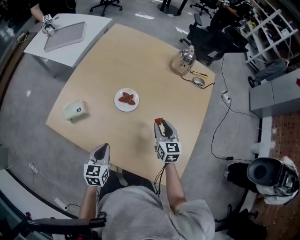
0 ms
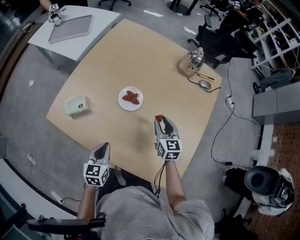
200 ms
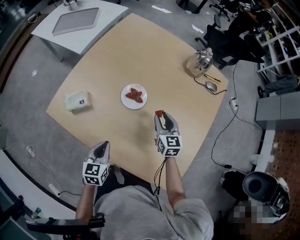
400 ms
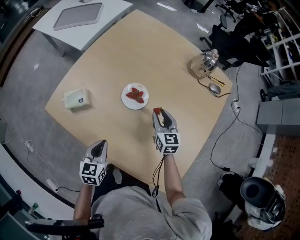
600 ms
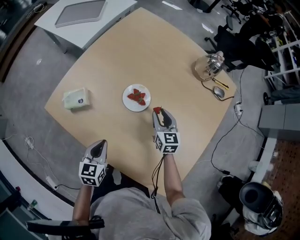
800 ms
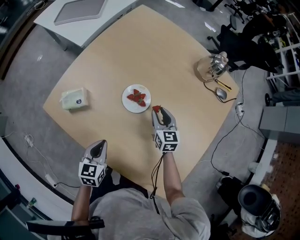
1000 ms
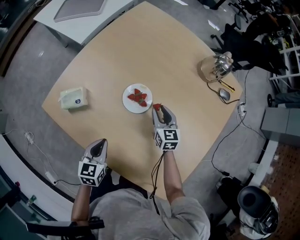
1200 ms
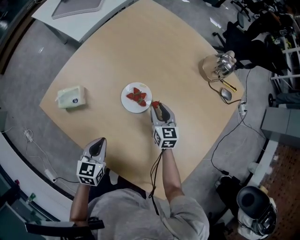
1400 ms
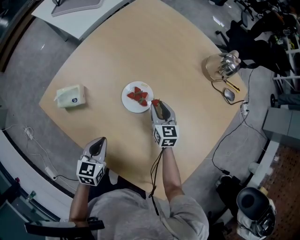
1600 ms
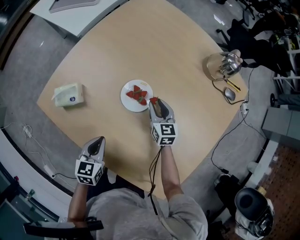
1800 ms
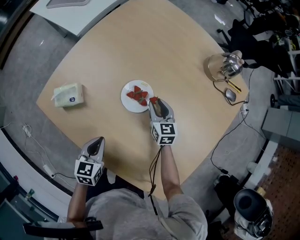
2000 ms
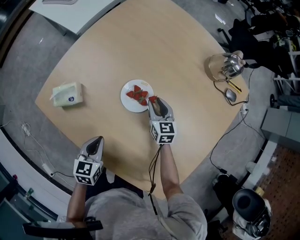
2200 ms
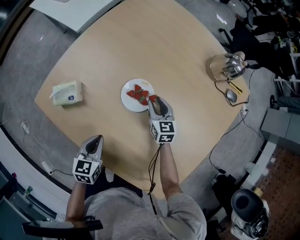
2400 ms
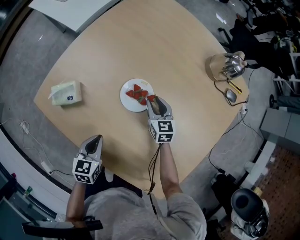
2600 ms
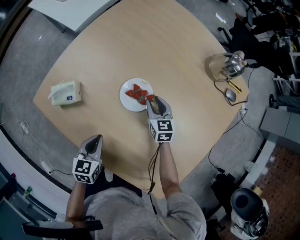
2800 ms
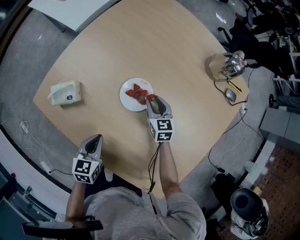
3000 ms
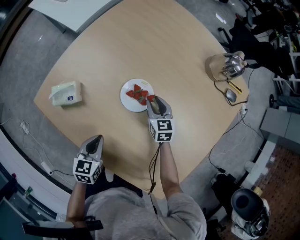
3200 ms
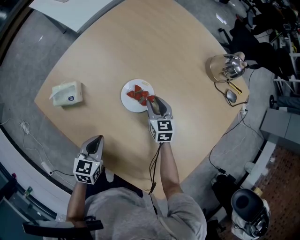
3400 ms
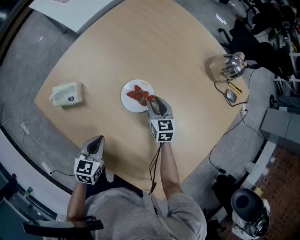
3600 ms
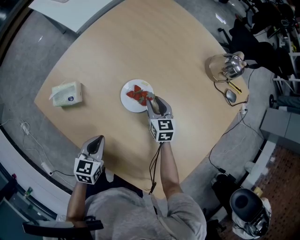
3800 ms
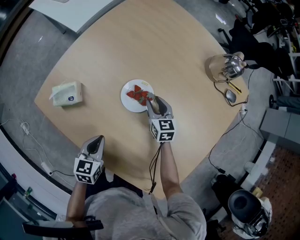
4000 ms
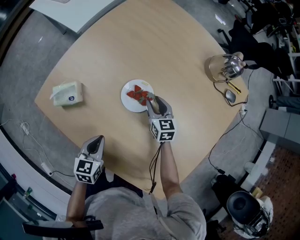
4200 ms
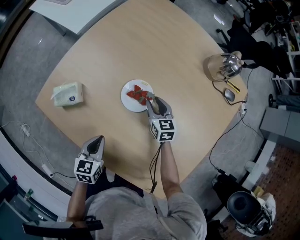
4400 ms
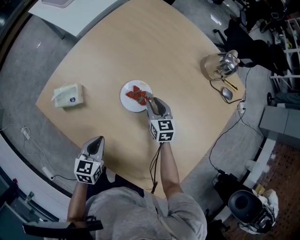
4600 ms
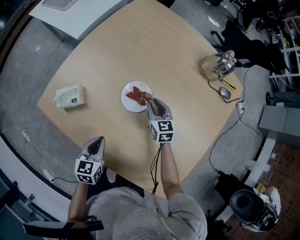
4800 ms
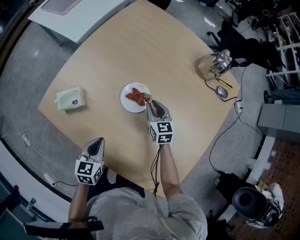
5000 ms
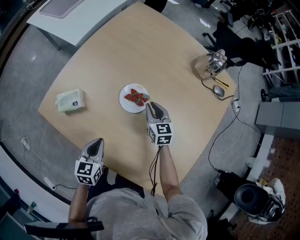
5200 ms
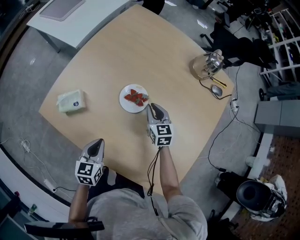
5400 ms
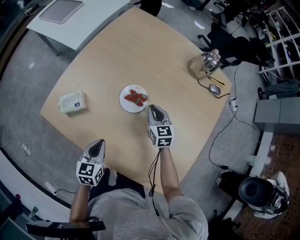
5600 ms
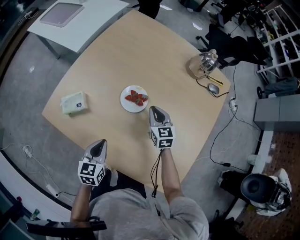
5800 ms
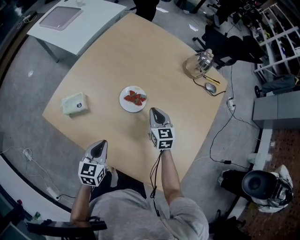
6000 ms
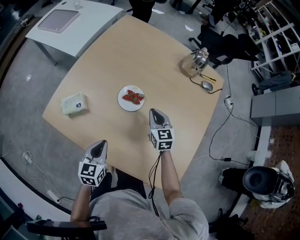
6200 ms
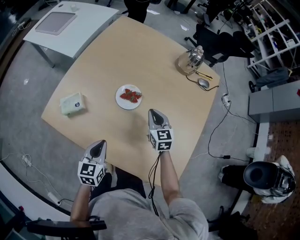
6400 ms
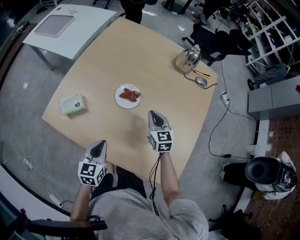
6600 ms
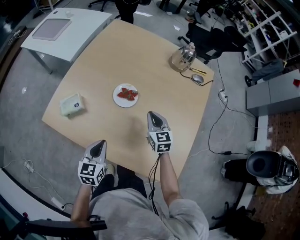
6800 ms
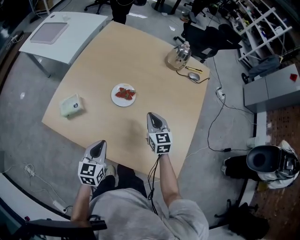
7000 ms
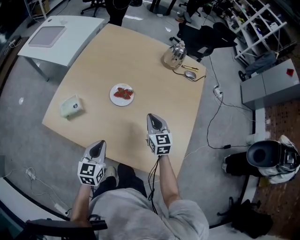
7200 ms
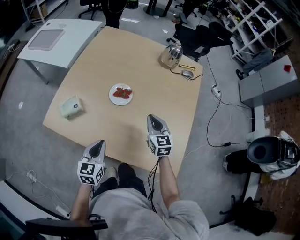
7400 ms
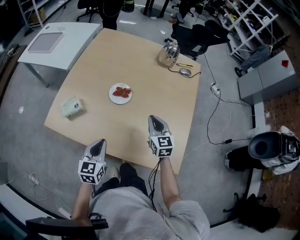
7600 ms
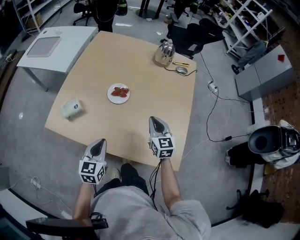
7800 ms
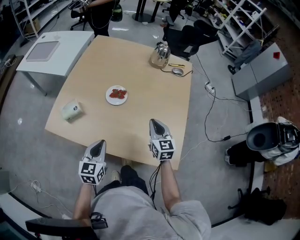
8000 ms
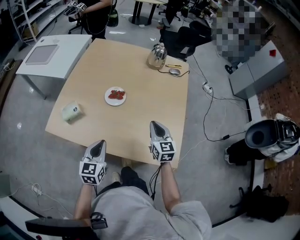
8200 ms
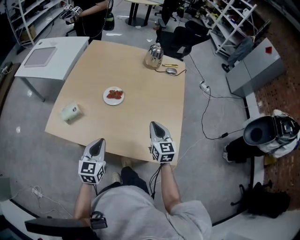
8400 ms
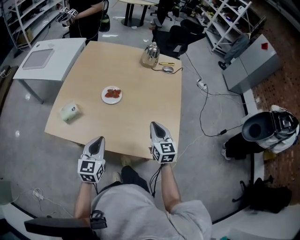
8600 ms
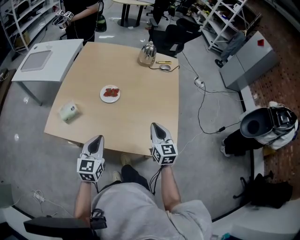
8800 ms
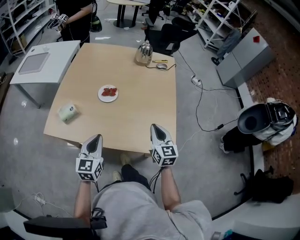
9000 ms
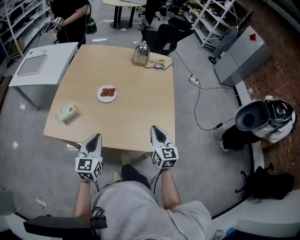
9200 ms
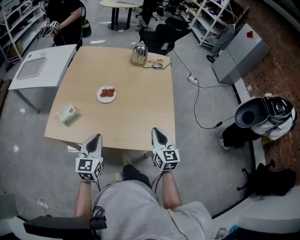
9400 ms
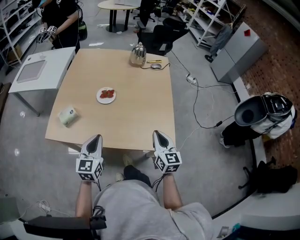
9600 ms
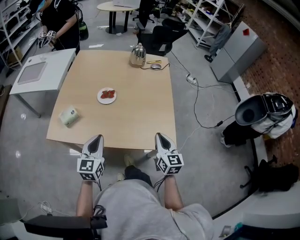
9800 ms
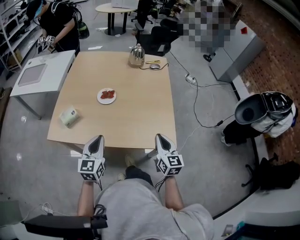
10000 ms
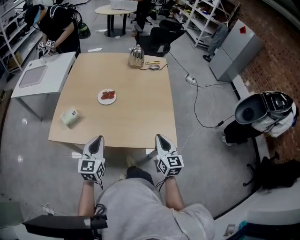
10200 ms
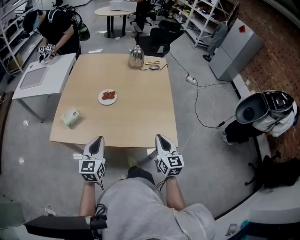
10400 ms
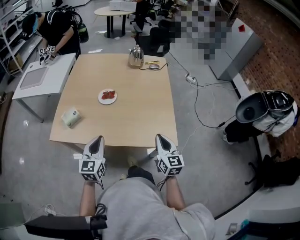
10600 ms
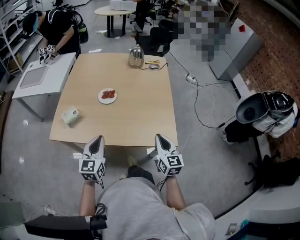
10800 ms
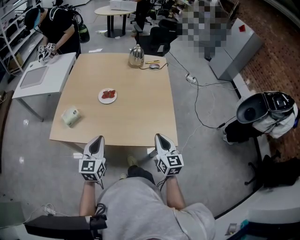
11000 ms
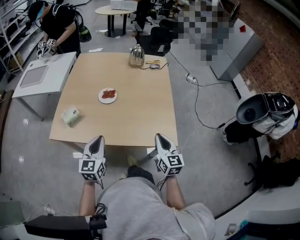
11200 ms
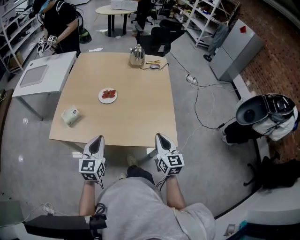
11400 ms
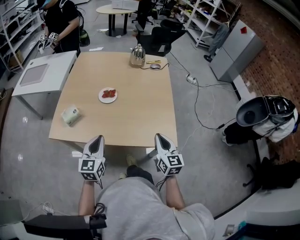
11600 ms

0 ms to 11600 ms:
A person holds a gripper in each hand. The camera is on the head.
0 ms to 1400 ms: The left gripper travels forward and downward by roughly 10 cm; the right gripper heads forward, downward and to the left, covering roughly 20 cm.
1400 ms to 2800 ms: The right gripper moves about 5 cm.
2800 ms to 4400 ms: Both grippers stay put.
4400 ms to 5800 ms: The left gripper goes some 5 cm upward. The right gripper is displaced upward and backward by roughly 10 cm, and closes its fingers.
5800 ms to 7200 ms: The right gripper moves backward and upward, approximately 15 cm, while the left gripper travels backward and upward by roughly 10 cm.
7200 ms to 8800 ms: The left gripper travels upward and backward by approximately 10 cm, while the right gripper heads backward, upward and to the right, covering roughly 20 cm.
8800 ms to 10200 ms: The left gripper changes place by some 5 cm, while the right gripper moves backward, approximately 15 cm.
10200 ms to 11600 ms: Both grippers stay put.

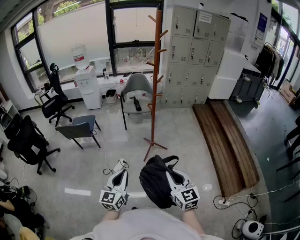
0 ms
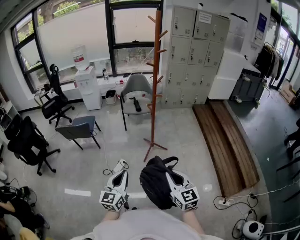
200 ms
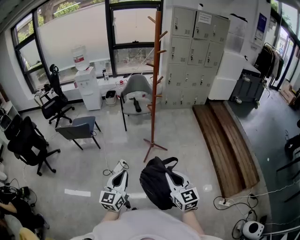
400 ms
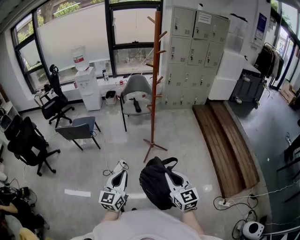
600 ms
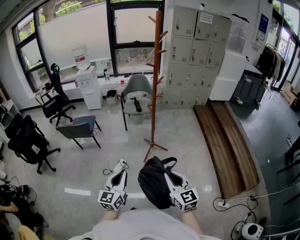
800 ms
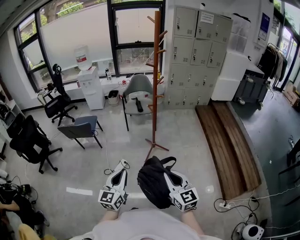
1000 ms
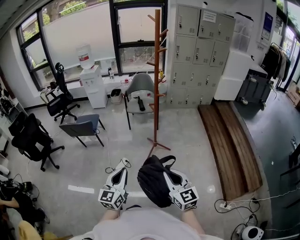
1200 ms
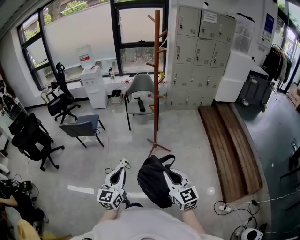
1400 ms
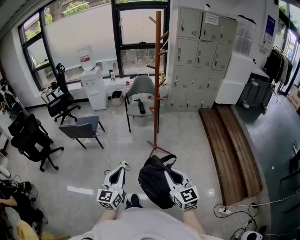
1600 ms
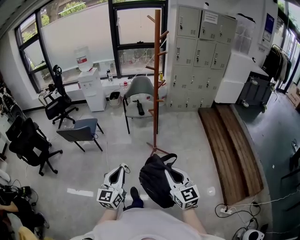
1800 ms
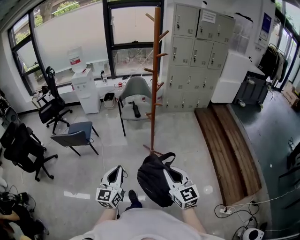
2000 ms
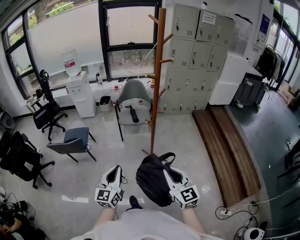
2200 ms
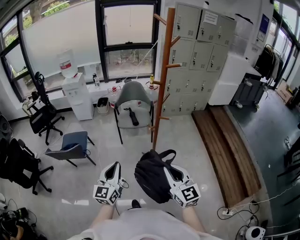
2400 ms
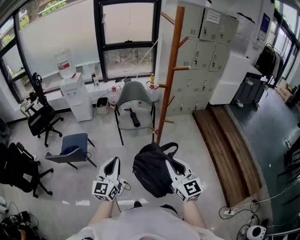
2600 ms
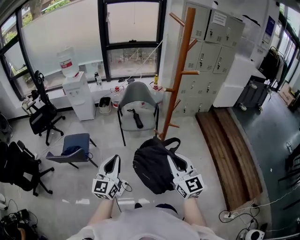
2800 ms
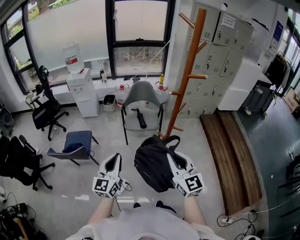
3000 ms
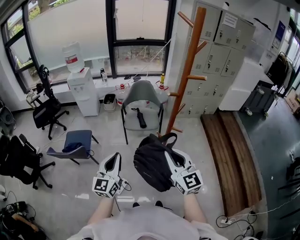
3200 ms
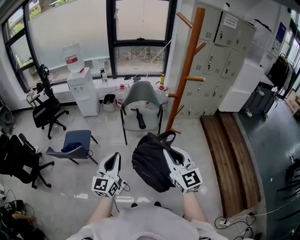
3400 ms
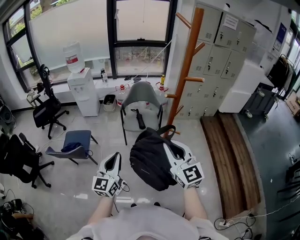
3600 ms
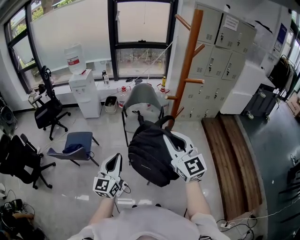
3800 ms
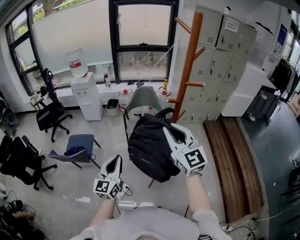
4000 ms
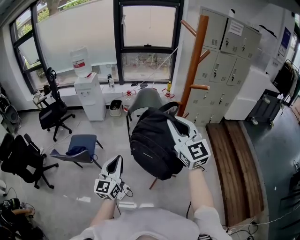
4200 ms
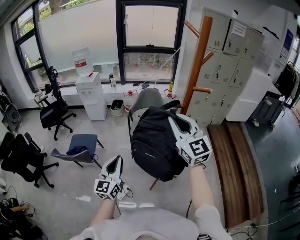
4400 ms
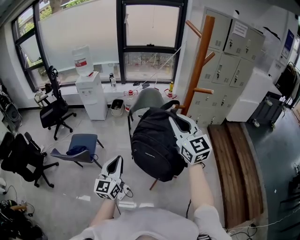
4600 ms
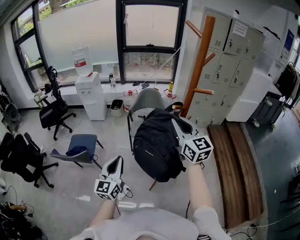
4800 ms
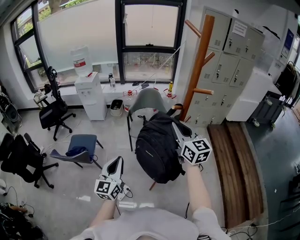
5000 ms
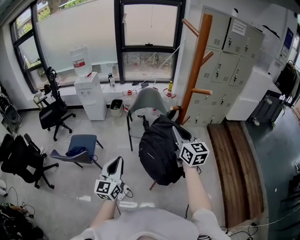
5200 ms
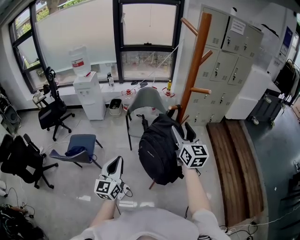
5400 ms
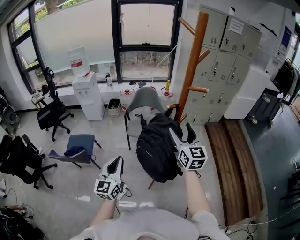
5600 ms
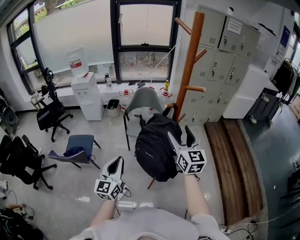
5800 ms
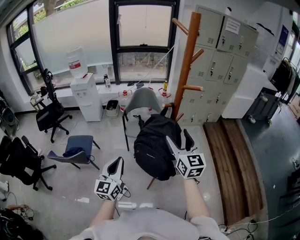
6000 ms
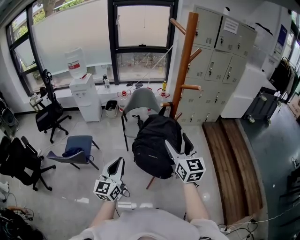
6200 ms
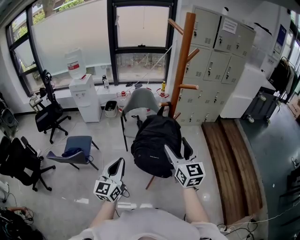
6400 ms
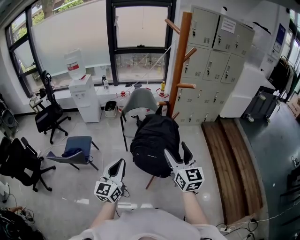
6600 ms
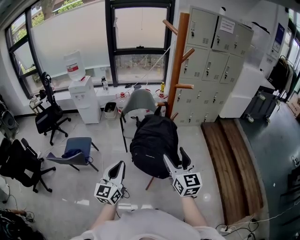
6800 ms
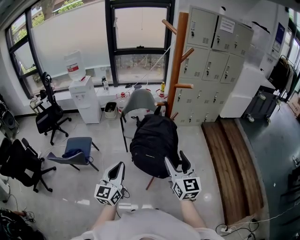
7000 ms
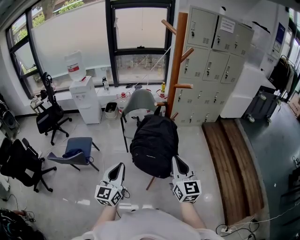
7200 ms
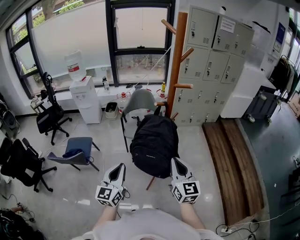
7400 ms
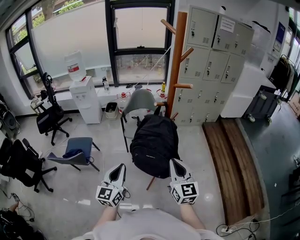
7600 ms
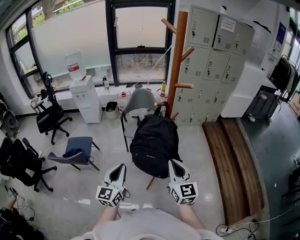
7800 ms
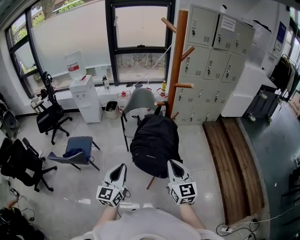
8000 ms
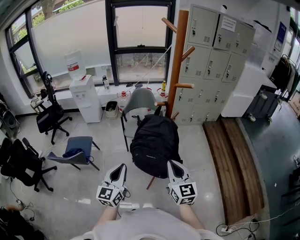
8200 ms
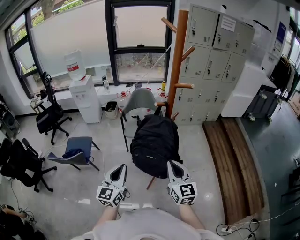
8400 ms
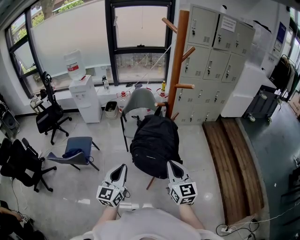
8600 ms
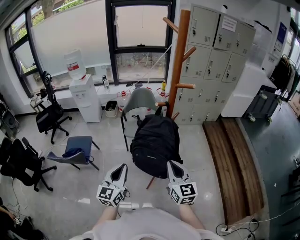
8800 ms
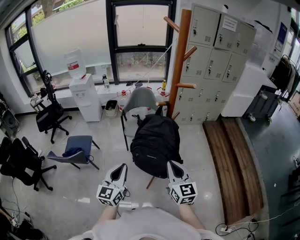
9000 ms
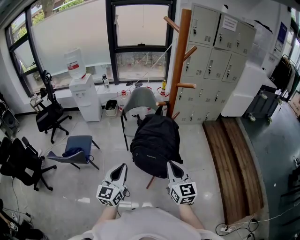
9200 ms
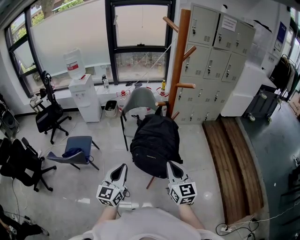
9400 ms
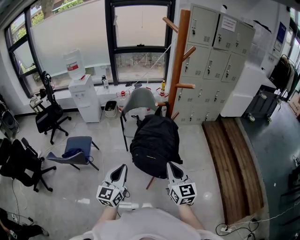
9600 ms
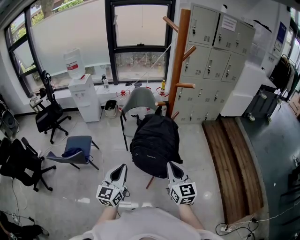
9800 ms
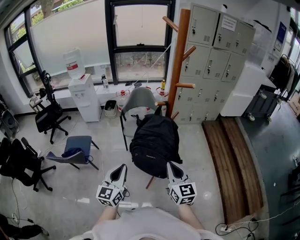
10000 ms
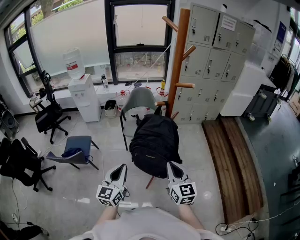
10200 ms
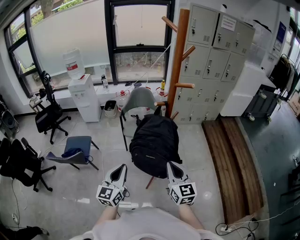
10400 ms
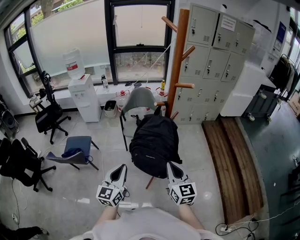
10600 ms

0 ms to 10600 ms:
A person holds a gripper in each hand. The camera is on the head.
0 ms to 1600 ms: The right gripper moves some 5 cm.
1600 ms to 3000 ms: The grippers both shift forward by approximately 40 cm.
3000 ms to 4600 ms: The right gripper travels forward and upward by approximately 20 cm.
4600 ms to 6000 ms: The right gripper moves downward and to the right, approximately 10 cm, and opens up.
6000 ms to 7600 ms: The left gripper shifts by some 5 cm, while the right gripper heads backward and downward, covering approximately 10 cm, and closes.
7600 ms to 9000 ms: The grippers move only a little.
9000 ms to 10600 ms: Both grippers stay about where they are.

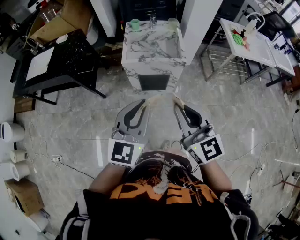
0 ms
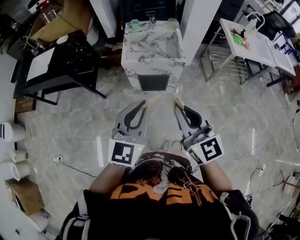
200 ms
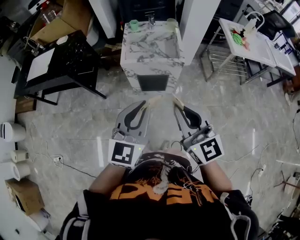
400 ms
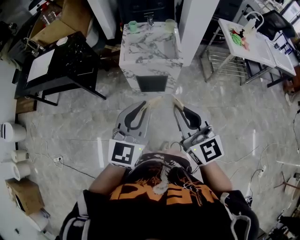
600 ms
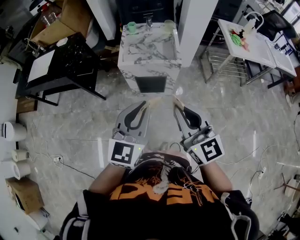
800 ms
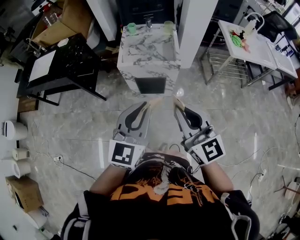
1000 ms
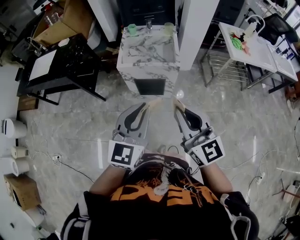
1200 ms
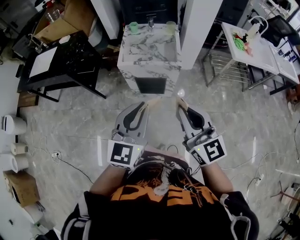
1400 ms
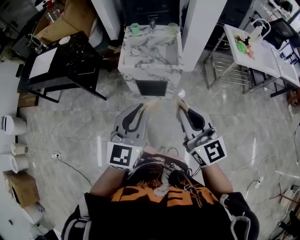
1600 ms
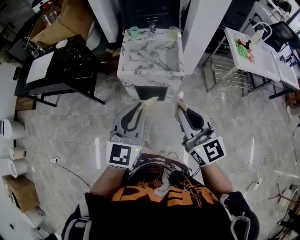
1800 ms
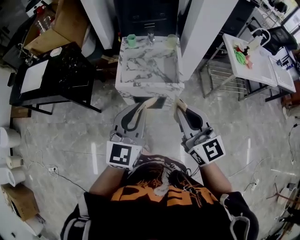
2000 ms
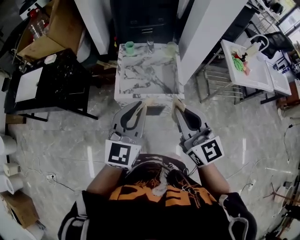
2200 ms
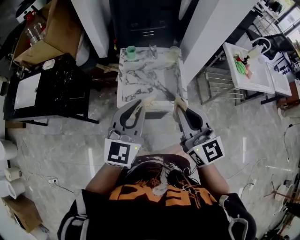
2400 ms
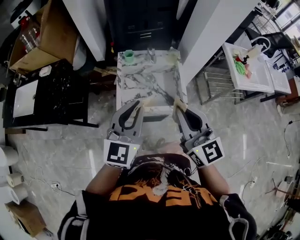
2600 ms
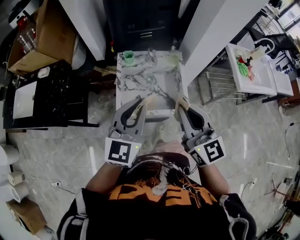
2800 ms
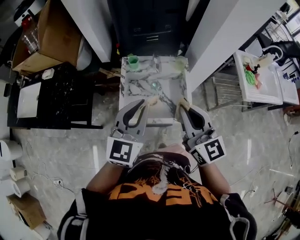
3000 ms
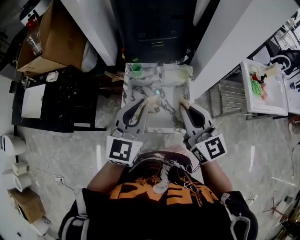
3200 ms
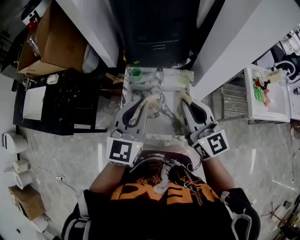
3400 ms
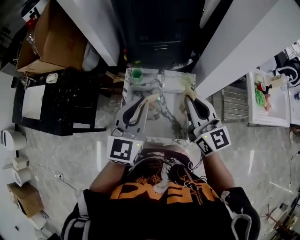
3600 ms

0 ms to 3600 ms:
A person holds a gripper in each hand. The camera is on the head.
0 ms to 1800 ms: The left gripper travels forward by approximately 10 cm. The right gripper travels forward and to the right by some 10 cm.
1800 ms to 3600 ms: Both grippers are carried forward, some 50 cm.
